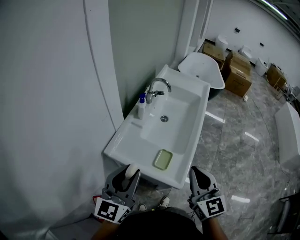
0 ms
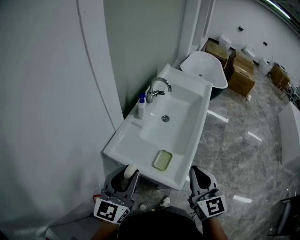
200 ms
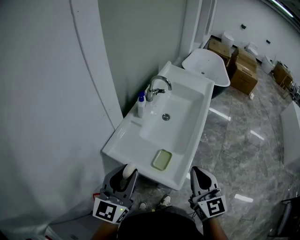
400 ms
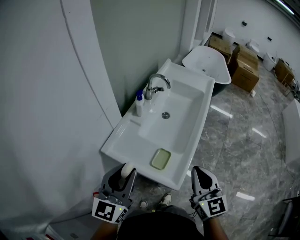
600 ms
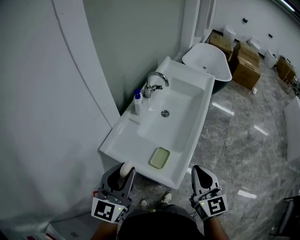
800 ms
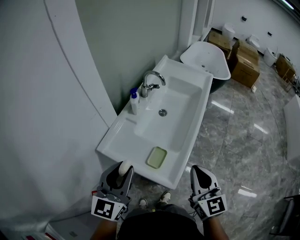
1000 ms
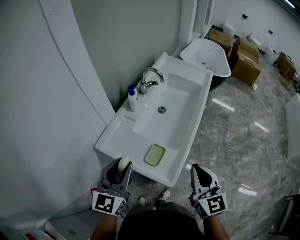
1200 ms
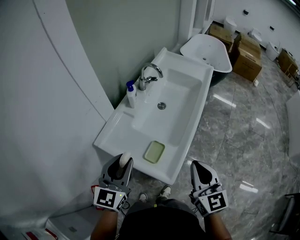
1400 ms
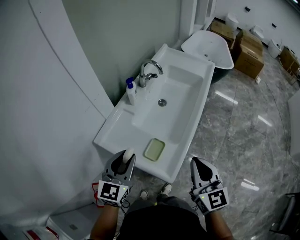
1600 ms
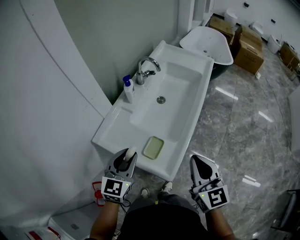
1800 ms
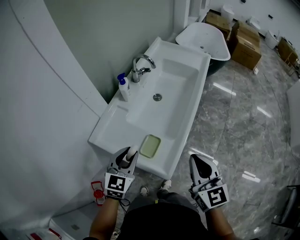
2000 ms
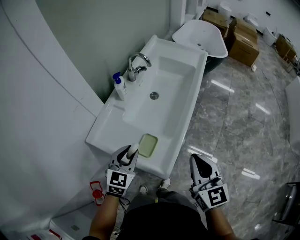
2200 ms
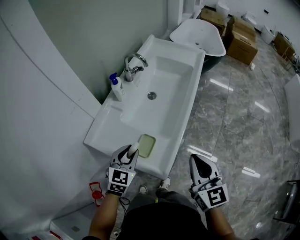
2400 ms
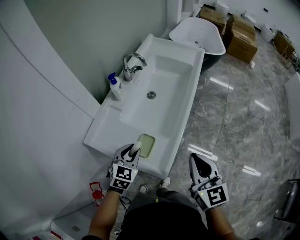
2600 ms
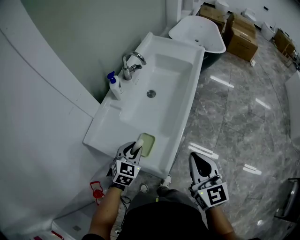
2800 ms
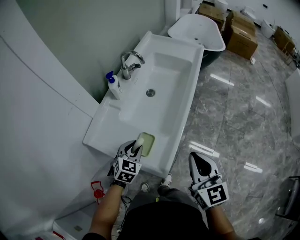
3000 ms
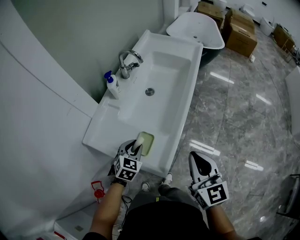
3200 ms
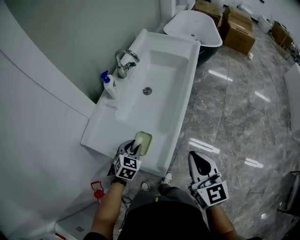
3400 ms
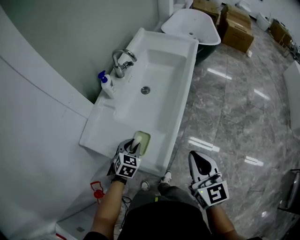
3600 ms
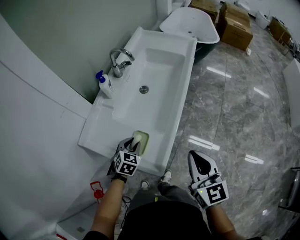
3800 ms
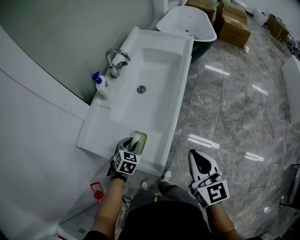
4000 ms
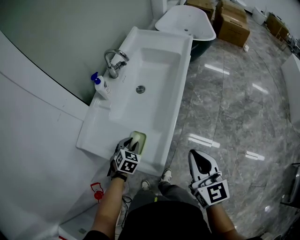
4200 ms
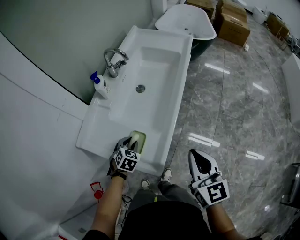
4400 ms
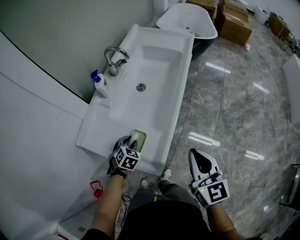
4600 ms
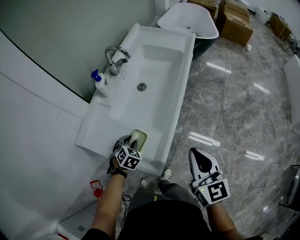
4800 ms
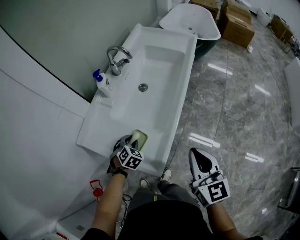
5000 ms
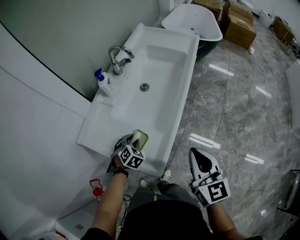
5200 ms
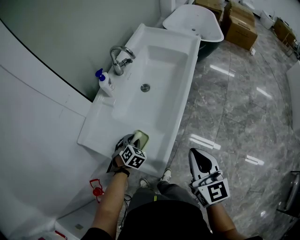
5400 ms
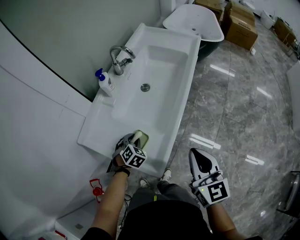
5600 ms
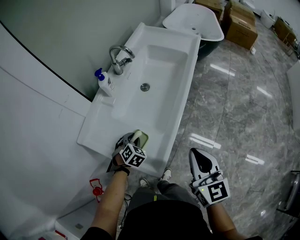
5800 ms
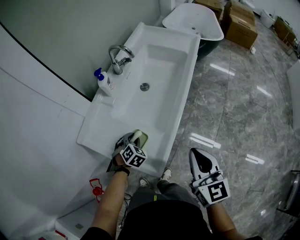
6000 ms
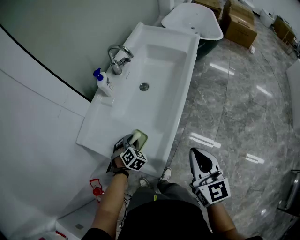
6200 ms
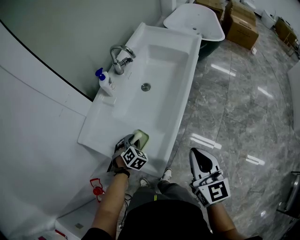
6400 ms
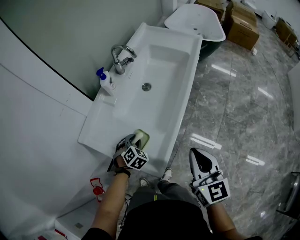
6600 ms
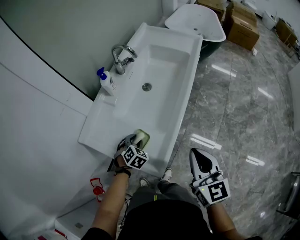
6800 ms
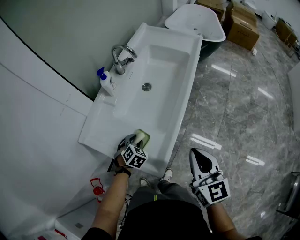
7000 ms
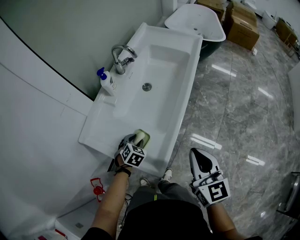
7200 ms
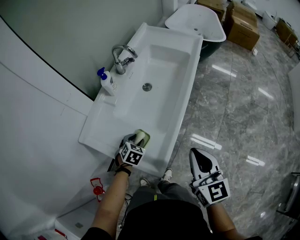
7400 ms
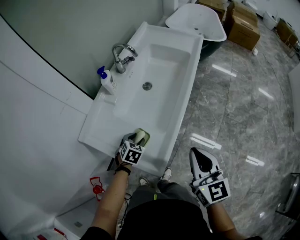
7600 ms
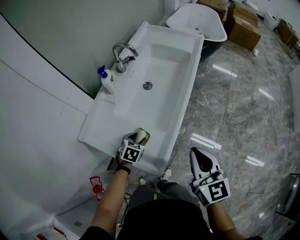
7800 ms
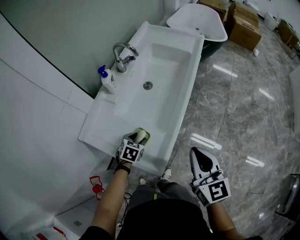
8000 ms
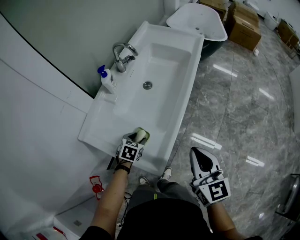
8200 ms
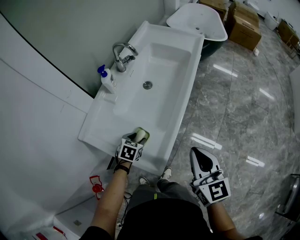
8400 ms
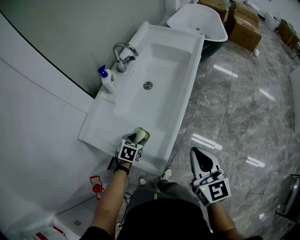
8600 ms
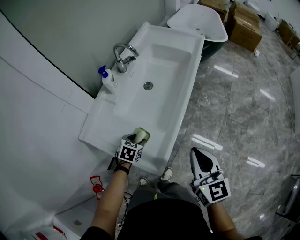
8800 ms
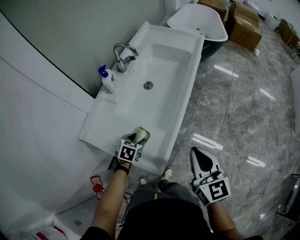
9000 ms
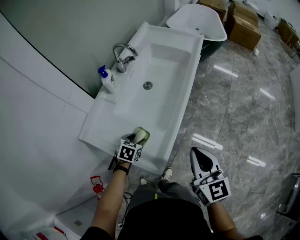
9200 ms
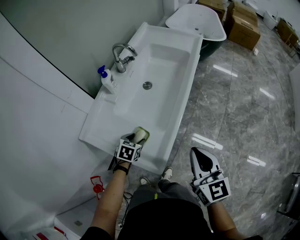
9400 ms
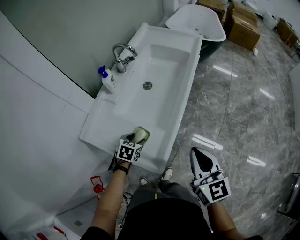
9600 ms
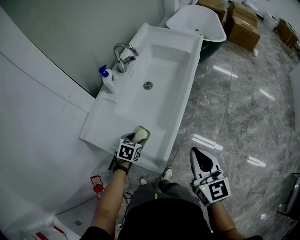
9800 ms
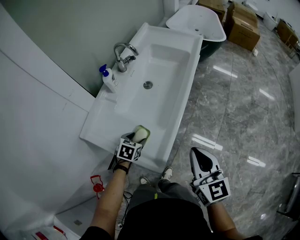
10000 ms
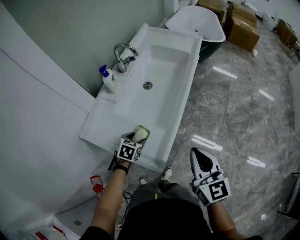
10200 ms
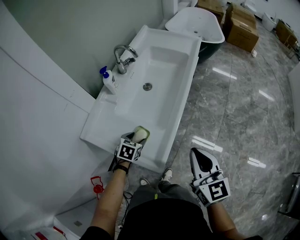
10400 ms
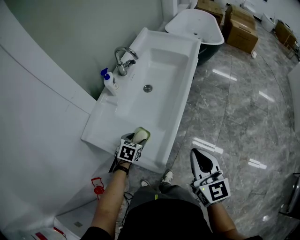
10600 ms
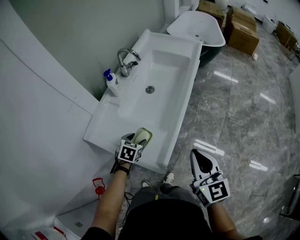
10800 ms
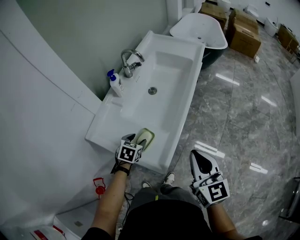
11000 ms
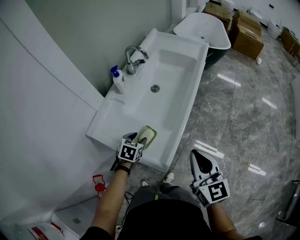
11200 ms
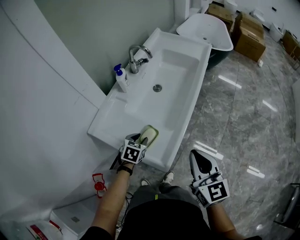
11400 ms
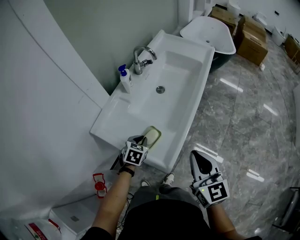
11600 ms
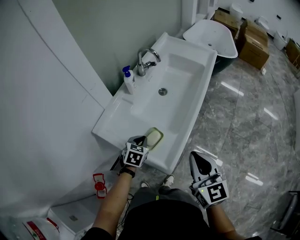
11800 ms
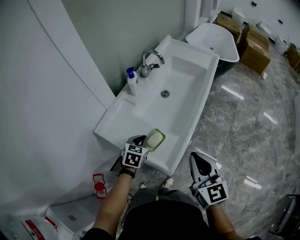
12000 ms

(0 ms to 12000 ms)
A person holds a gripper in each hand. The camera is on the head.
0 ms - 1600 ms: The right gripper travels to the right by approximately 10 cm. Meanwhile the left gripper travels downward, to the right and forward by some 15 cm.
1600 ms - 3000 ms: The right gripper ends up approximately 5 cm from where it was, while the left gripper goes about 20 cm downward, and rotates roughly 30 degrees.
3000 ms - 4400 ms: The left gripper shifts approximately 10 cm downward.
4400 ms - 6000 ms: The grippers make only small movements.
6000 ms - 7600 ms: The left gripper rotates approximately 20 degrees.
7600 ms - 10400 ms: The grippers make only small movements.
10400 ms - 12000 ms: The right gripper moves to the left, about 10 cm, while the left gripper moves upward, about 5 cm, and closes up.

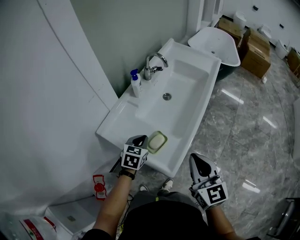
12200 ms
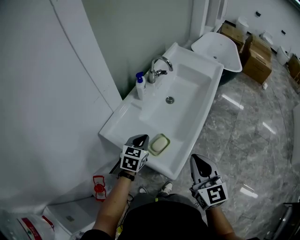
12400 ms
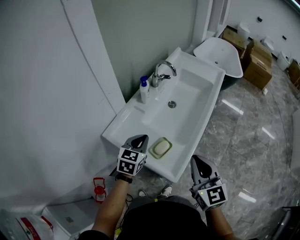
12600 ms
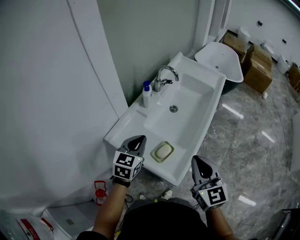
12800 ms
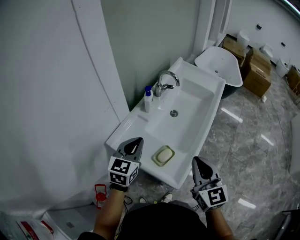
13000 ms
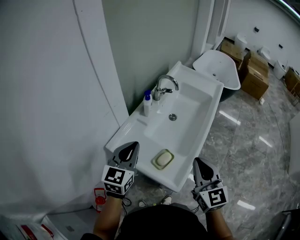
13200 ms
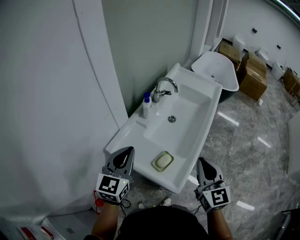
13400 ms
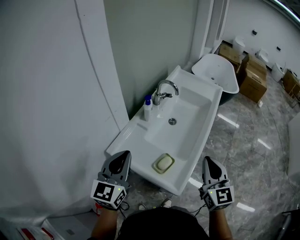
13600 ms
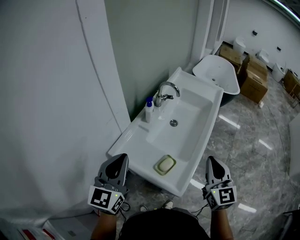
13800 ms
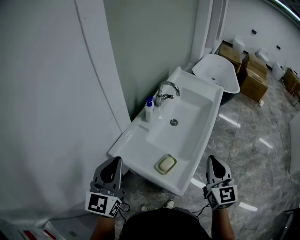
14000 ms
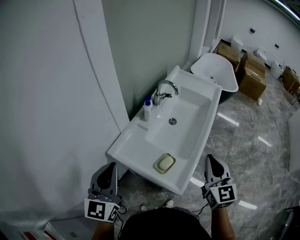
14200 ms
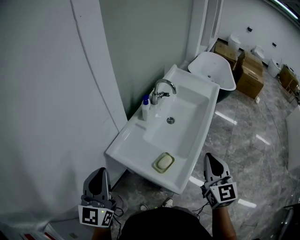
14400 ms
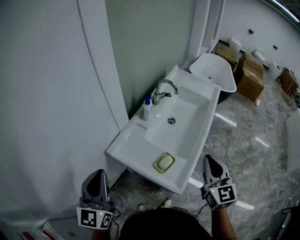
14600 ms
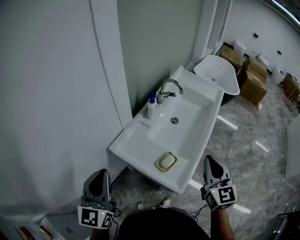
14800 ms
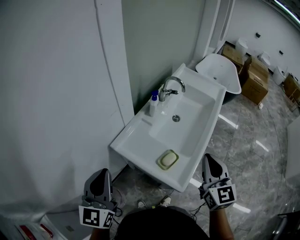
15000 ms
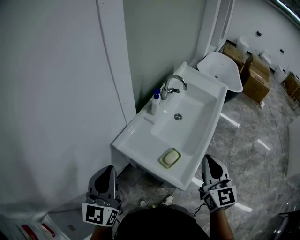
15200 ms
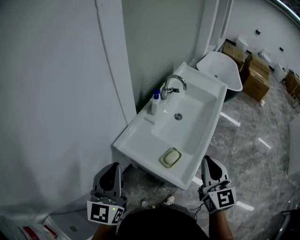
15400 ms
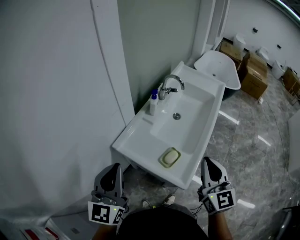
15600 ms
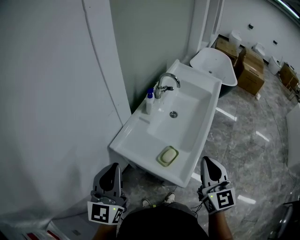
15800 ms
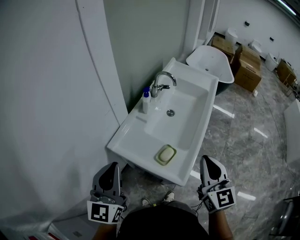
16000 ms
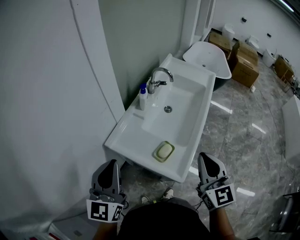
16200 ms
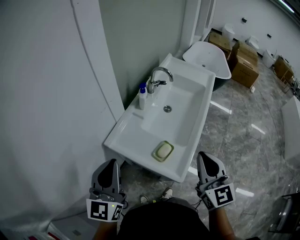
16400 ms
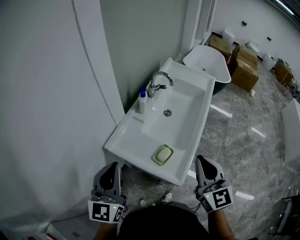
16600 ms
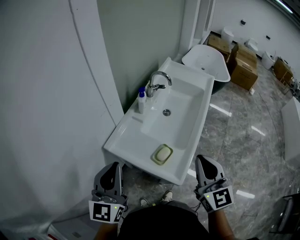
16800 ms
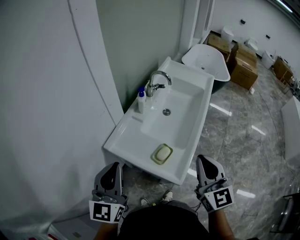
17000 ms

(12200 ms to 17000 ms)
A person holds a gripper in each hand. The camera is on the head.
12200 ms - 13800 ms: The right gripper shifts about 10 cm upward and forward. The left gripper moves upward and to the left, about 30 cm, and angles its fingers upward, by roughly 40 degrees.
13800 ms - 15400 ms: The left gripper shifts some 10 cm backward and to the left, while the right gripper goes about 5 cm to the left.
15400 ms - 17000 ms: The grippers stay close to where they were, moving slightly.

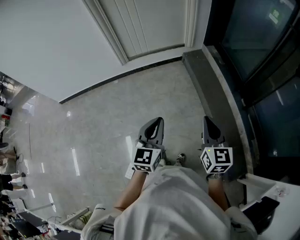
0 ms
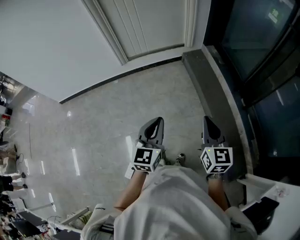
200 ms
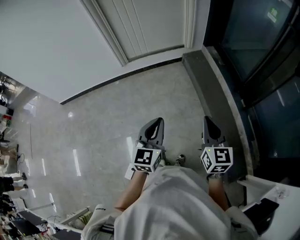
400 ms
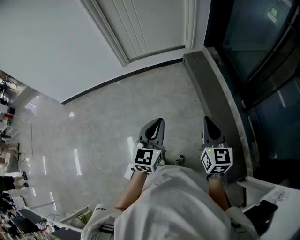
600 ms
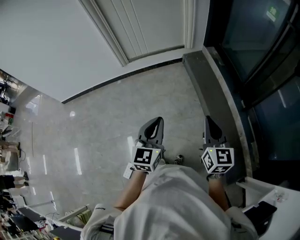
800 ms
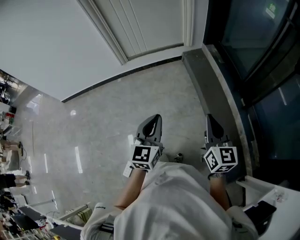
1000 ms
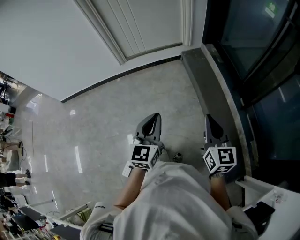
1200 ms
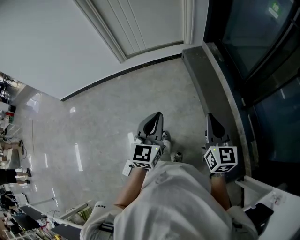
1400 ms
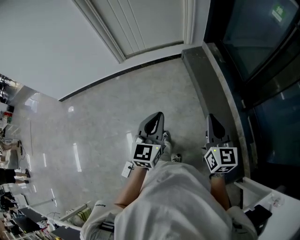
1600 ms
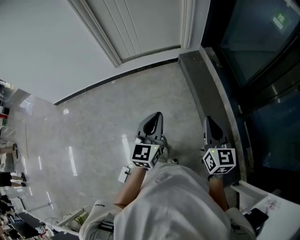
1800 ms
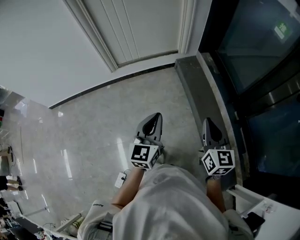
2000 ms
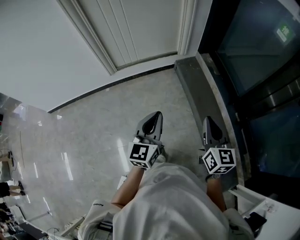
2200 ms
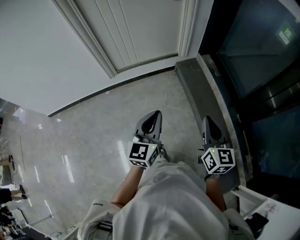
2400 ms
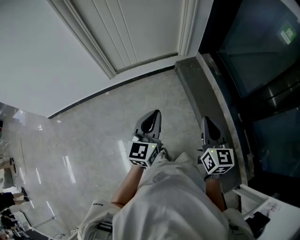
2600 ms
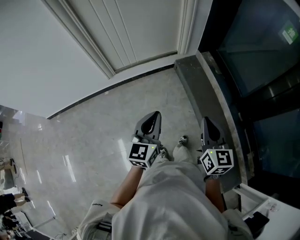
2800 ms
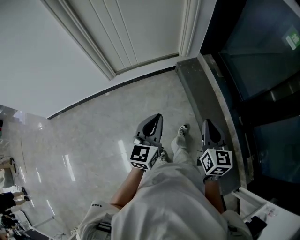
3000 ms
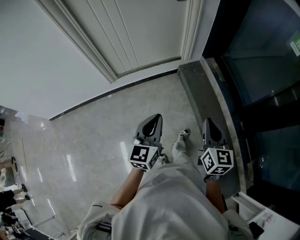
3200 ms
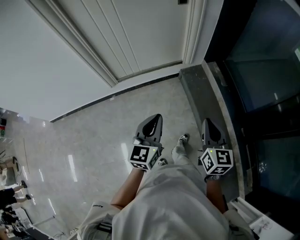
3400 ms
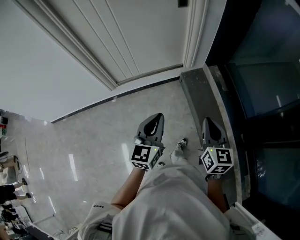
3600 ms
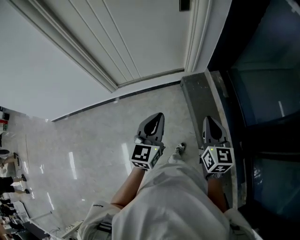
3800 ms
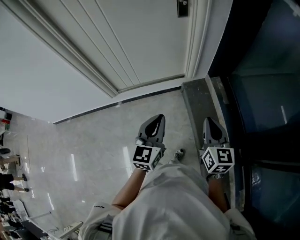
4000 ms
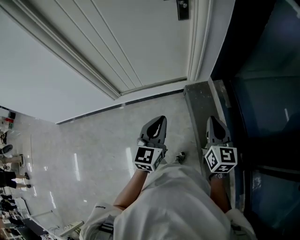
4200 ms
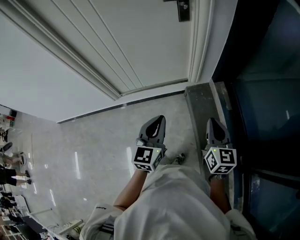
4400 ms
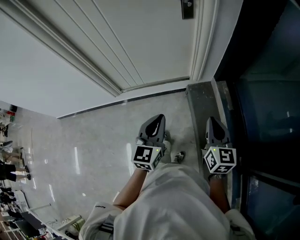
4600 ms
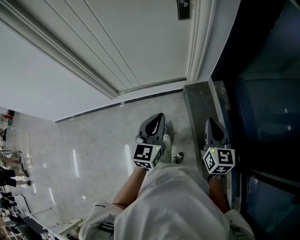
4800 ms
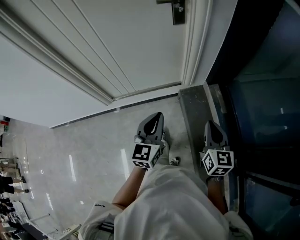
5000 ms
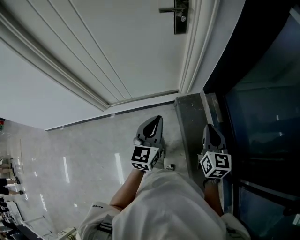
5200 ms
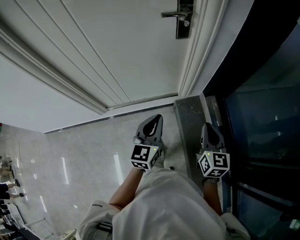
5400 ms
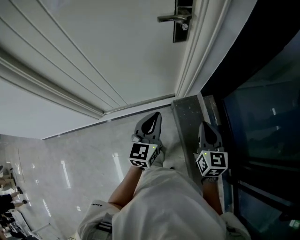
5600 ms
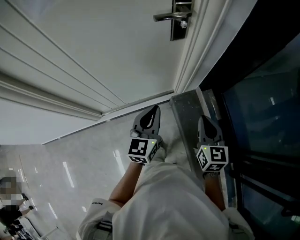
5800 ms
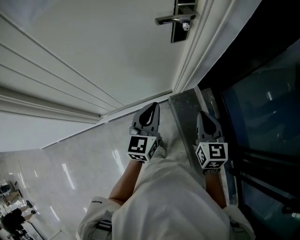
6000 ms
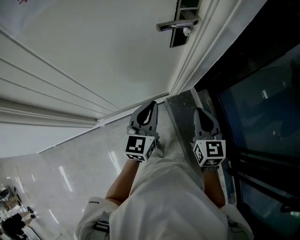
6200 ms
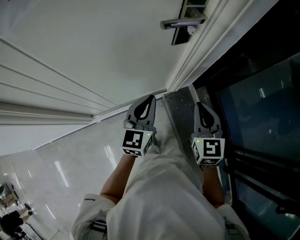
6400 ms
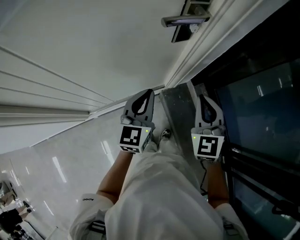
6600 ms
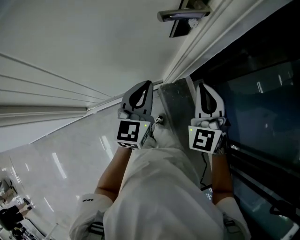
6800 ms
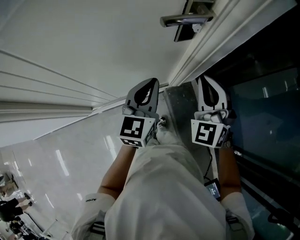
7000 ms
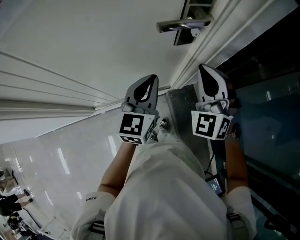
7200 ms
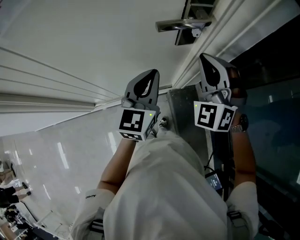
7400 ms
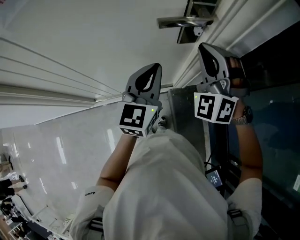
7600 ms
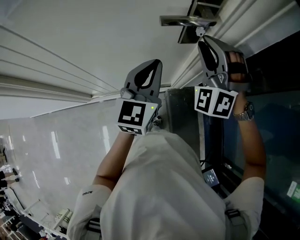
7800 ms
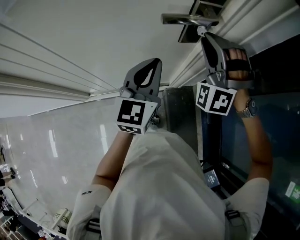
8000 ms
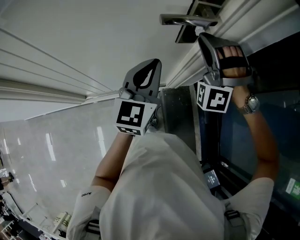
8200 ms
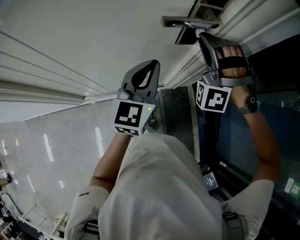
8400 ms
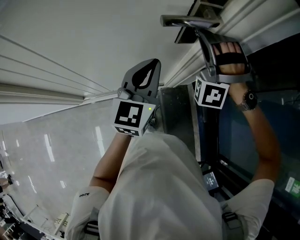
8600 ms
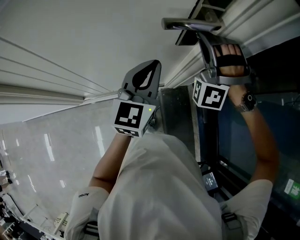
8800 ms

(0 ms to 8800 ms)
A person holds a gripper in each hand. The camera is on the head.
0 ms - 1400 ms: Both grippers travel together to the right and forward, approximately 15 cm.
1400 ms - 3000 ms: Both grippers travel together forward and to the left, approximately 35 cm.
3000 ms - 4400 ms: The right gripper travels forward by approximately 40 cm. The left gripper travels forward and to the right by approximately 40 cm.
4400 ms - 5800 ms: Both grippers move forward, about 35 cm.
5800 ms - 7400 ms: Both grippers move forward, approximately 25 cm. The right gripper twists some 70 degrees counterclockwise, seen from behind.
7400 ms - 8800 ms: The right gripper moves forward, some 5 cm, and swivels roughly 40 degrees.
